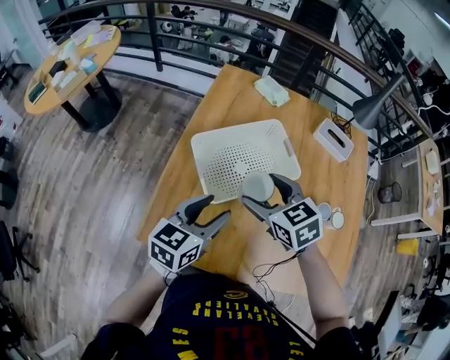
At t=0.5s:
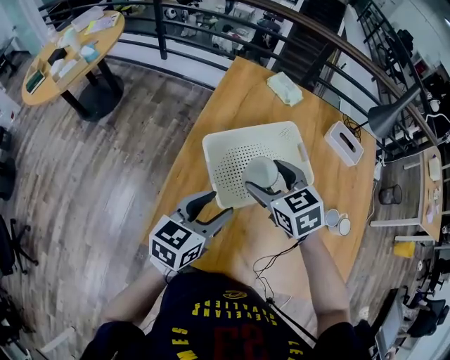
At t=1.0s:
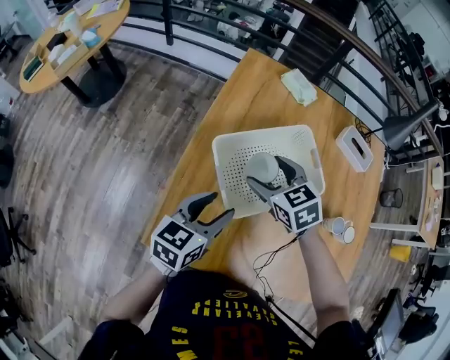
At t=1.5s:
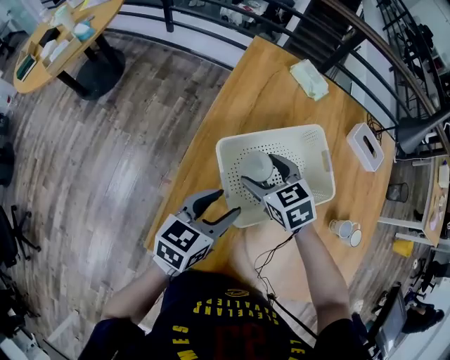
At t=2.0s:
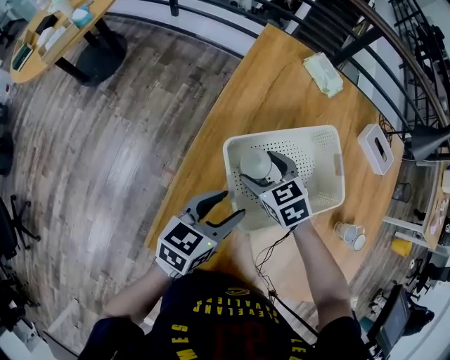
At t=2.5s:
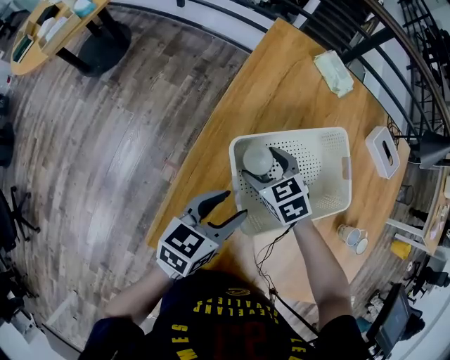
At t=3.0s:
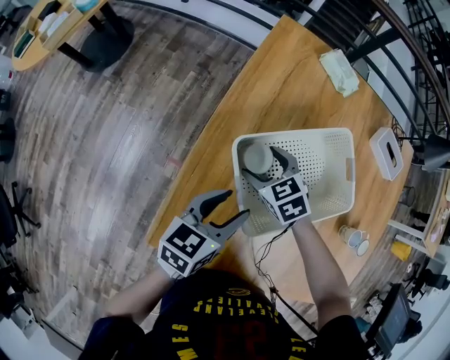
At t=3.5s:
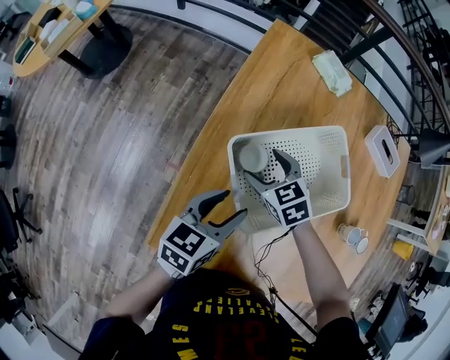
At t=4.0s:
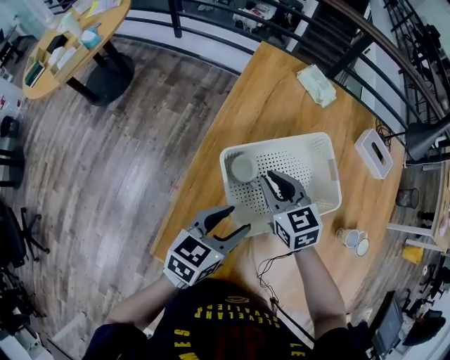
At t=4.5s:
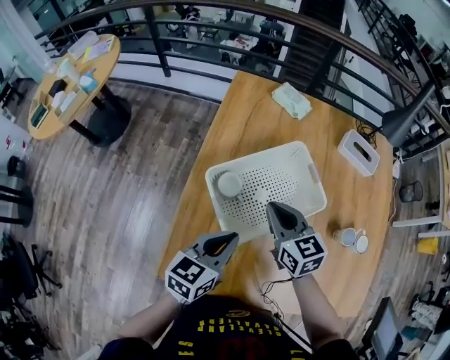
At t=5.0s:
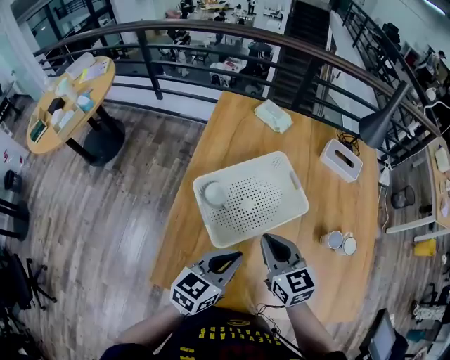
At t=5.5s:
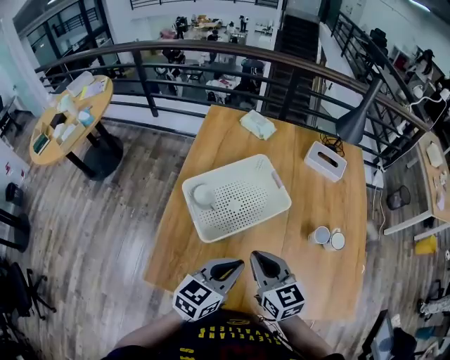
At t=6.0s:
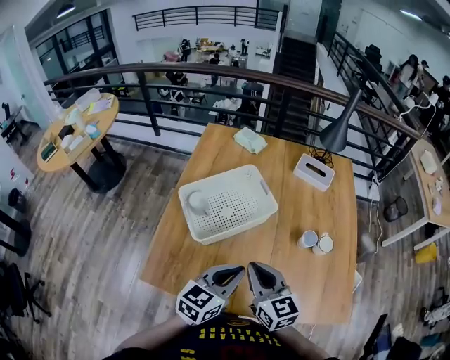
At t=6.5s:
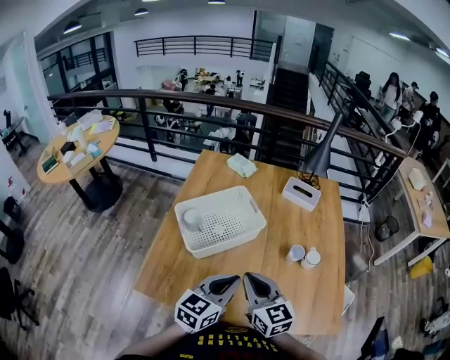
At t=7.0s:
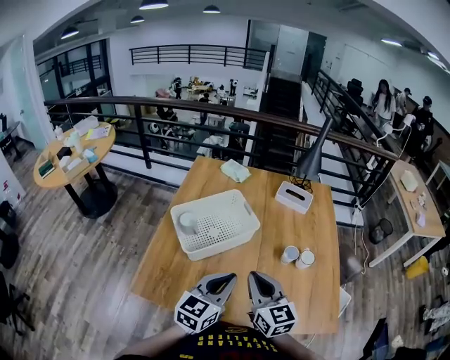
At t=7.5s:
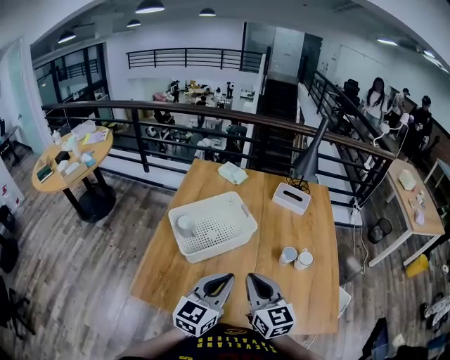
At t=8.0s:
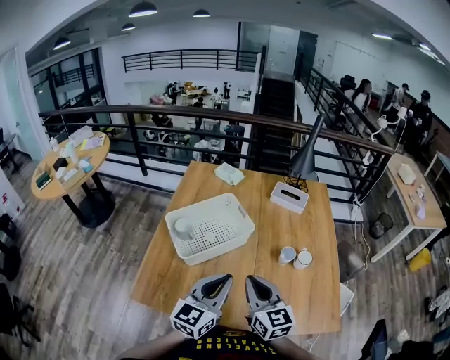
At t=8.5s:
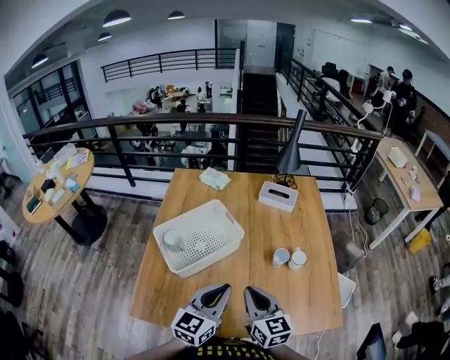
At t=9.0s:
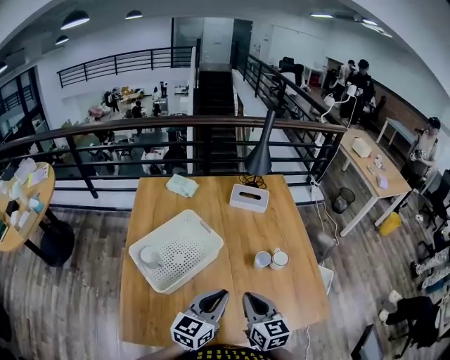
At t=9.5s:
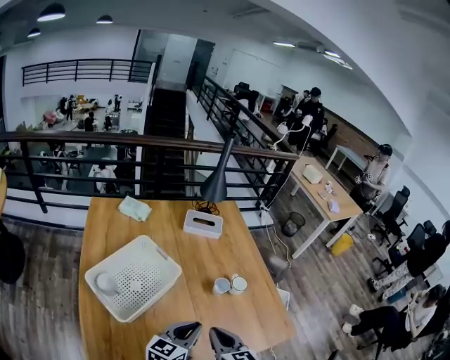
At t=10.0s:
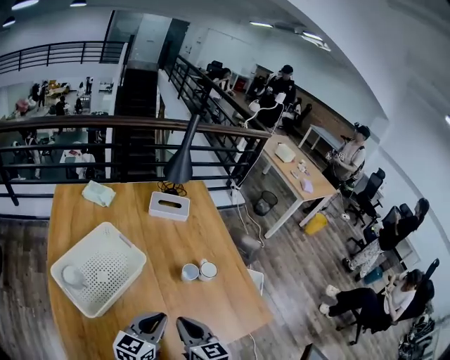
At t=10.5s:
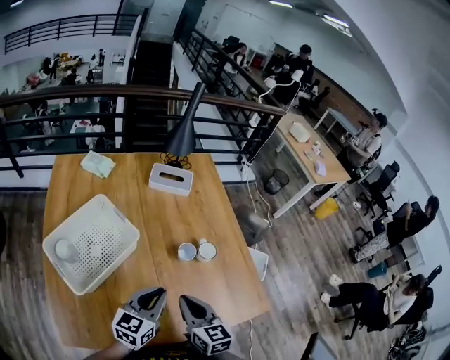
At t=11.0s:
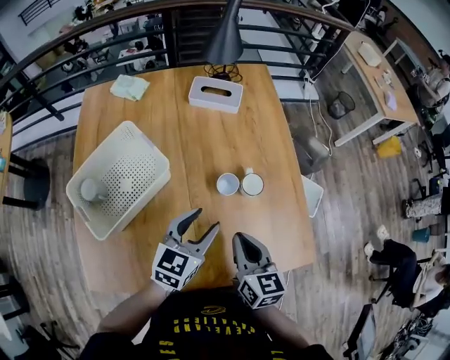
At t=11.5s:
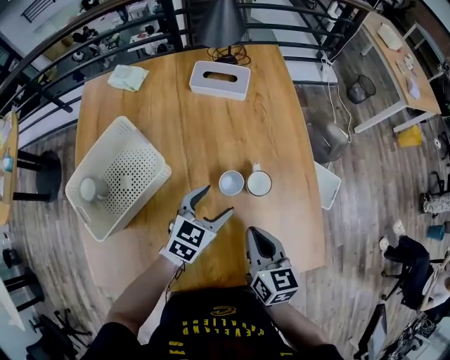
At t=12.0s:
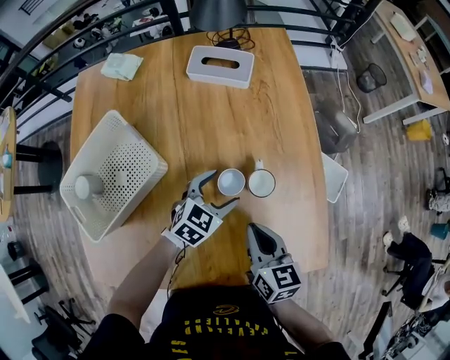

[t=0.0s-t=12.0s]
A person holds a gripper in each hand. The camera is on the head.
t=0.0s to t=2.0s: The left gripper is displaced forward, downward and to the left by some 15 cm. The right gripper travels downward, forward and to the left by about 25 cm.
t=2.0s to t=4.0s: The right gripper heads upward, covering about 5 cm, turns by some 20 degrees, and closes up.
t=4.0s to t=6.0s: The right gripper is displaced backward, to the right and upward by approximately 30 cm, and turns by roughly 30 degrees. Meanwhile the left gripper travels to the right, backward and upward by some 25 cm, and closes.
t=6.0s to t=8.0s: The left gripper moves upward, about 5 cm, while the right gripper goes roughly 5 cm to the right.
t=8.0s to t=10.0s: The two grippers go approximately 10 cm downward. The left gripper rotates roughly 30 degrees. Meanwhile the right gripper rotates roughly 30 degrees.
t=10.0s to t=12.0s: The right gripper moves to the right, forward and downward, roughly 20 cm. The left gripper heads forward, downward and to the right, covering roughly 30 cm, swivels some 30 degrees, and opens.

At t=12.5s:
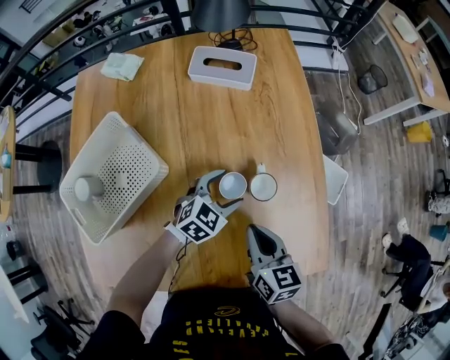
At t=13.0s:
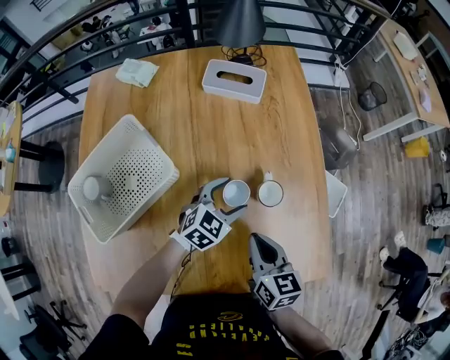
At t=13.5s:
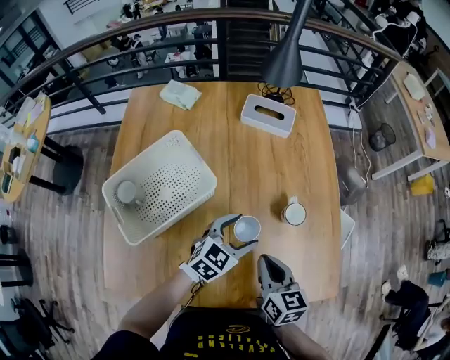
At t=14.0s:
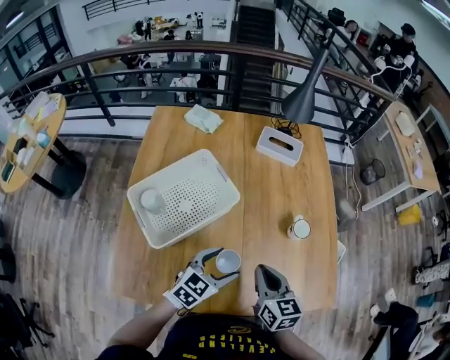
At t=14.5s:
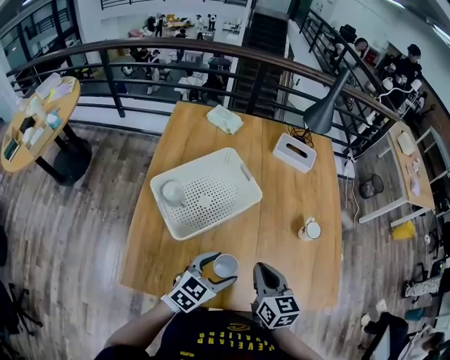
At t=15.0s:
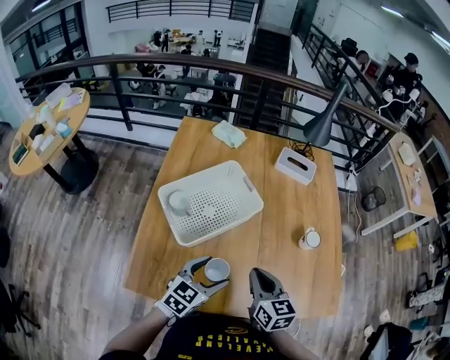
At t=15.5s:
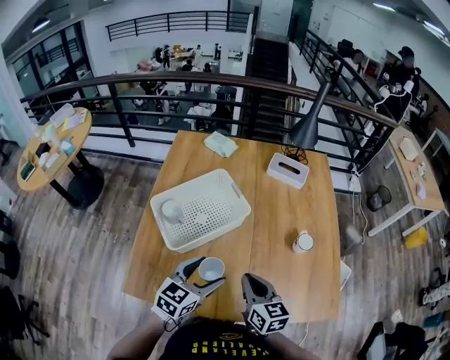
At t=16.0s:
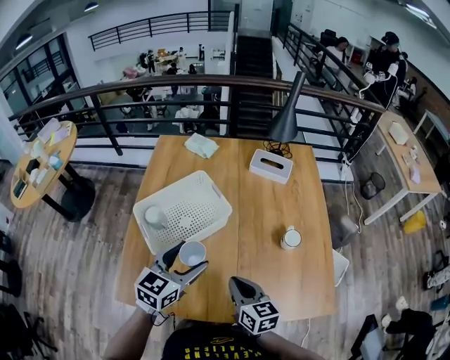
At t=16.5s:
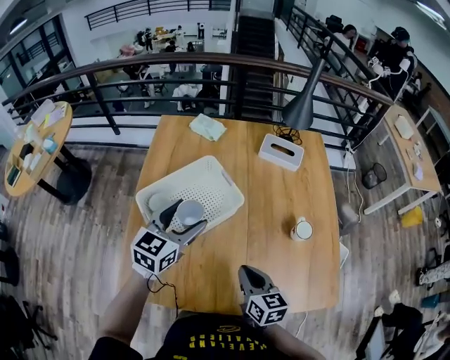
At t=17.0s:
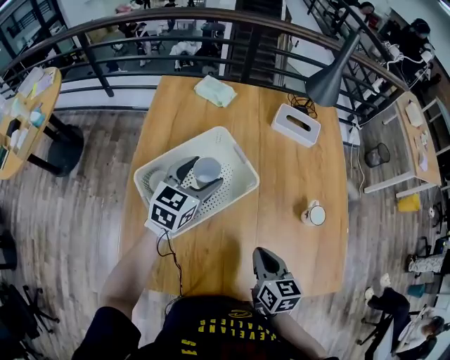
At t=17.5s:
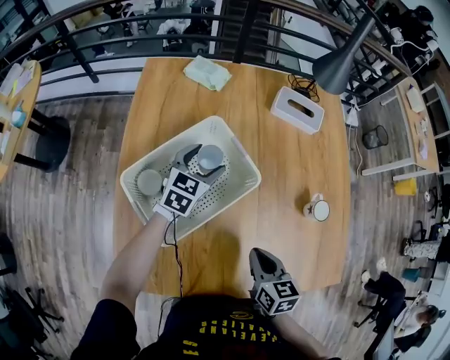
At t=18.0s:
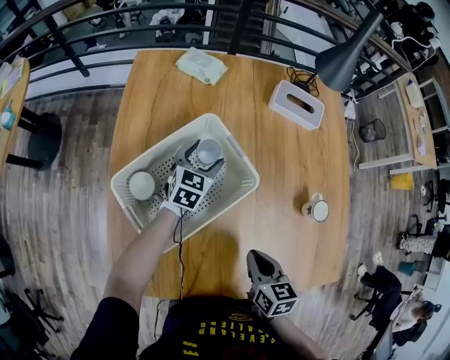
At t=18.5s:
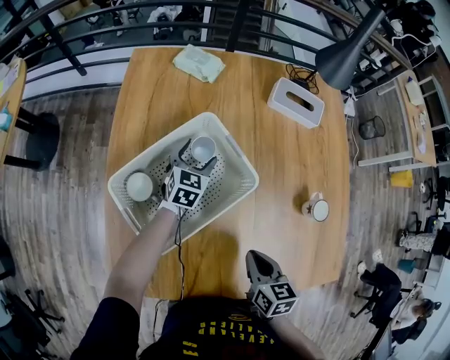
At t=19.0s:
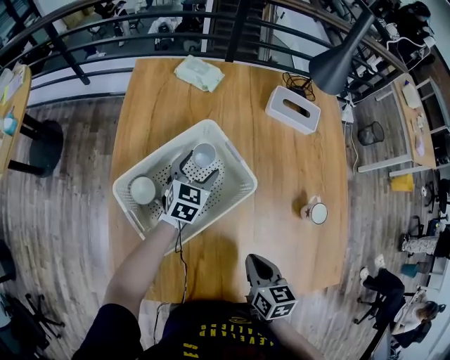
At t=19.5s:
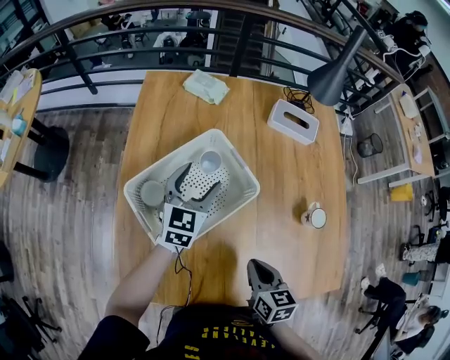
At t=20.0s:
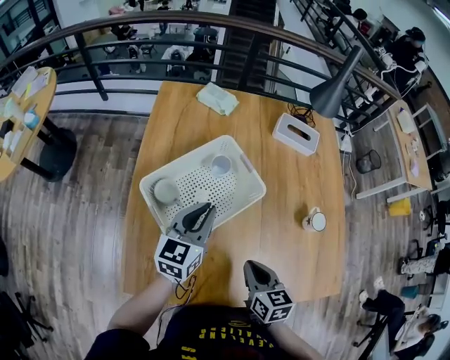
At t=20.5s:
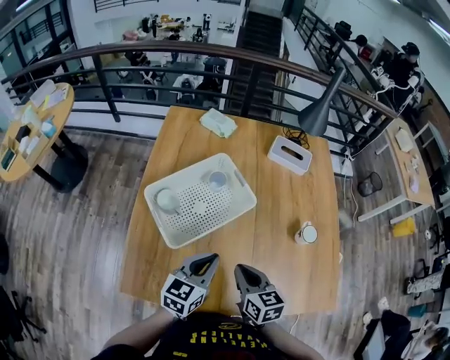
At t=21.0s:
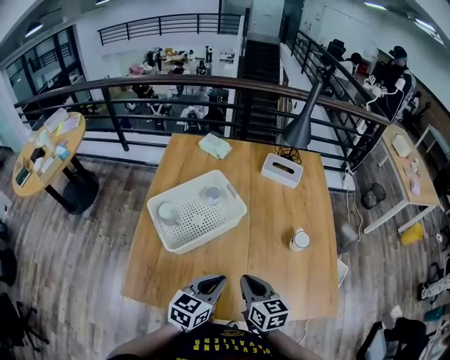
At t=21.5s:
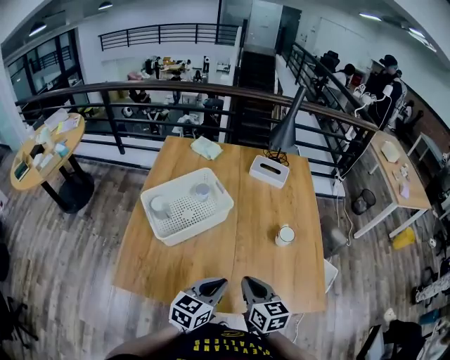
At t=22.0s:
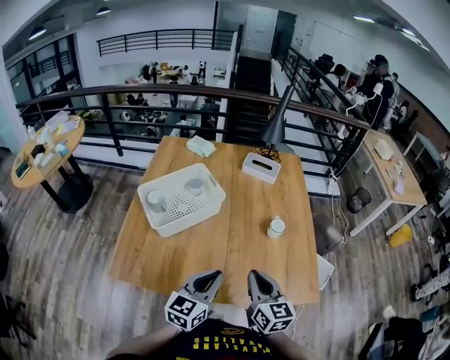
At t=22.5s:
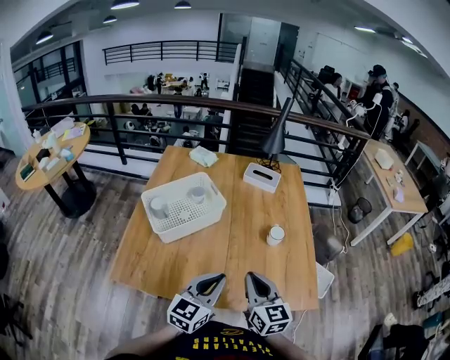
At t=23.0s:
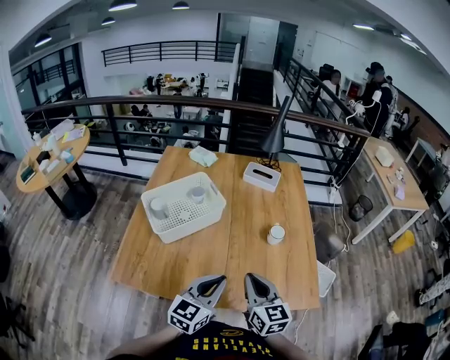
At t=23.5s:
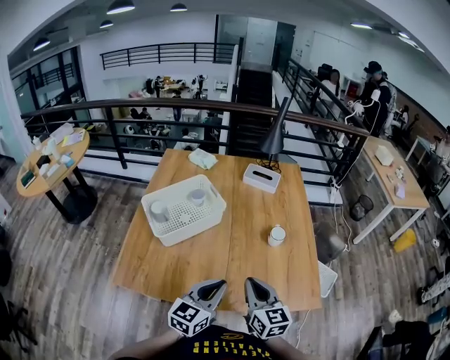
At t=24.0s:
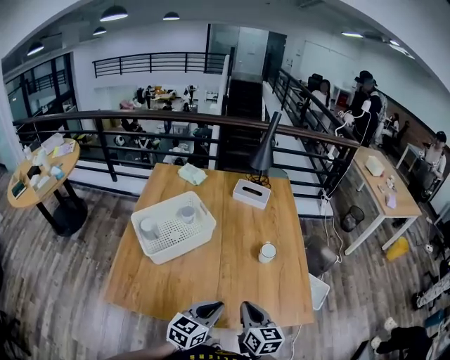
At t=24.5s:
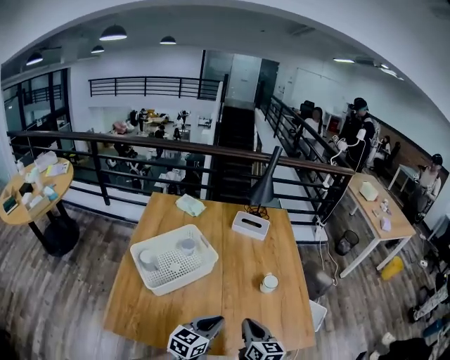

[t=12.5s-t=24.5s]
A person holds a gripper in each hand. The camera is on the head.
t=12.5s to t=14.5s: The right gripper travels to the left, backward and upward by approximately 25 cm. Meanwhile the left gripper heads backward, to the left and upward, covering roughly 35 cm, and changes its angle by approximately 30 degrees.
t=14.5s to t=16.5s: The left gripper is displaced forward, upward and to the left by some 20 cm, and rotates roughly 20 degrees.
t=16.5s to t=18.5s: The right gripper shifts roughly 5 cm downward; the left gripper is displaced downward and forward by about 30 cm.
t=18.5s to t=20.5s: The left gripper is displaced backward and upward by approximately 35 cm, turns by approximately 20 degrees, and closes its fingers; the right gripper moves upward, roughly 5 cm.
t=20.5s to t=22.5s: The two grippers go roughly 20 cm to the right, backward and upward. The right gripper swivels roughly 20 degrees.
t=22.5s to t=24.5s: The left gripper moves forward and downward, some 10 cm. Meanwhile the right gripper shifts roughly 5 cm downward.

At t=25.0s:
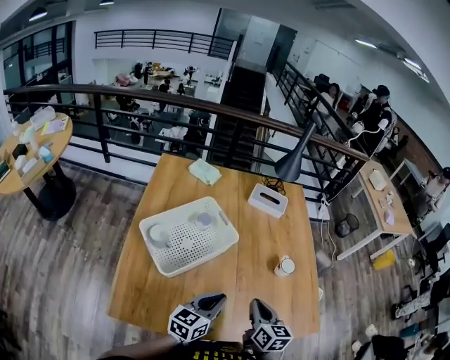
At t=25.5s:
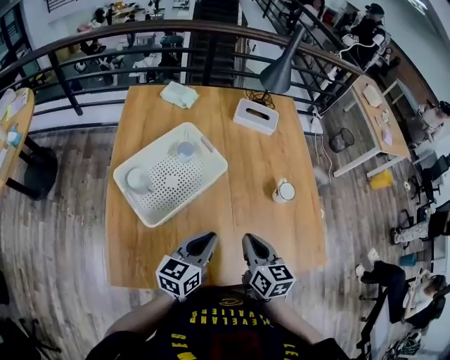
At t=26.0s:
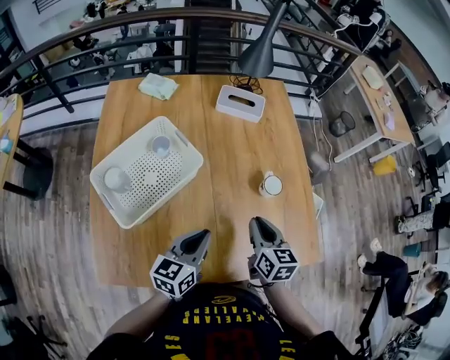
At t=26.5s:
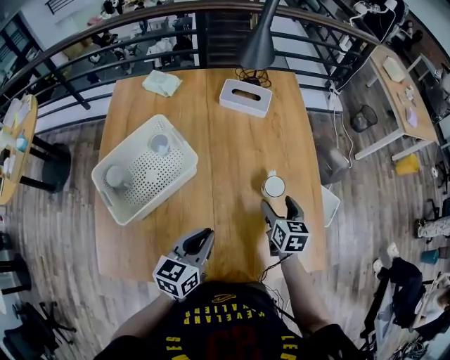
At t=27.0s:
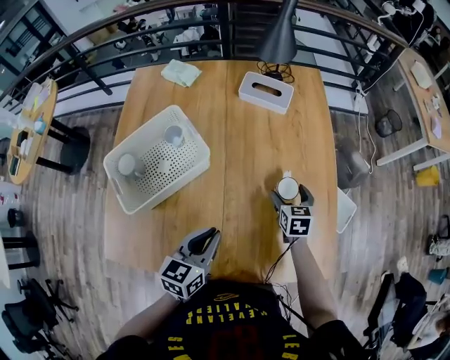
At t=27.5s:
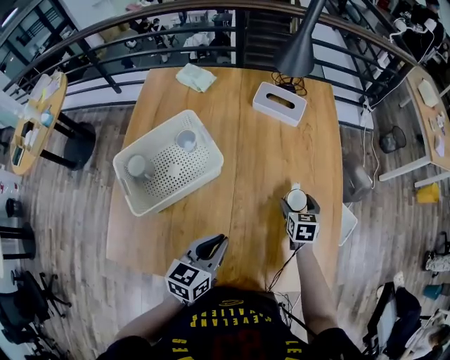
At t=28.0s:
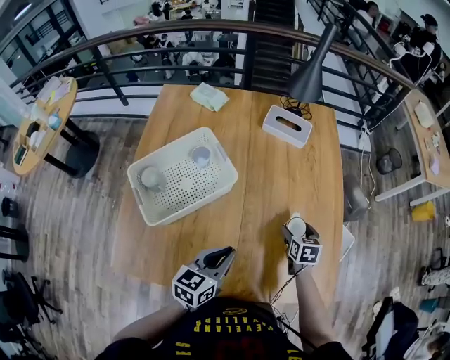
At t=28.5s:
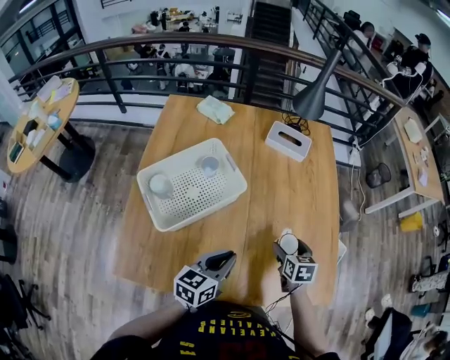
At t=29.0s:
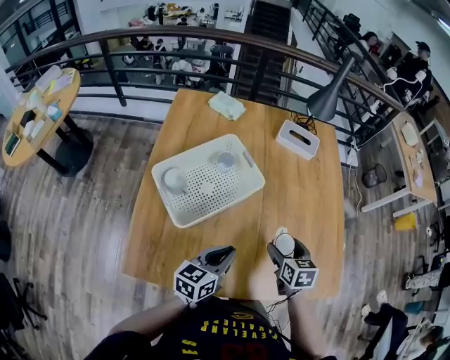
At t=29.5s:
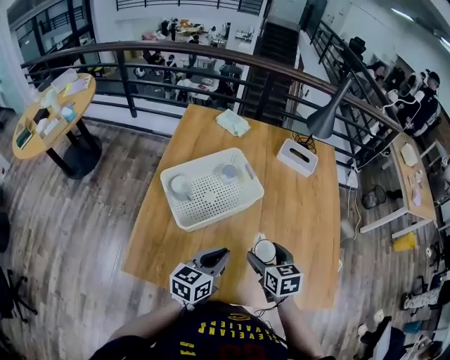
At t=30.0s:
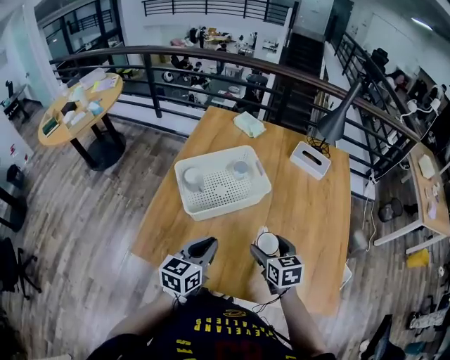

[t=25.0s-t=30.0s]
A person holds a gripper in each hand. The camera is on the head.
t=25.0s to t=27.5s: The left gripper shifts roughly 10 cm to the right and forward. The right gripper is displaced forward, downward and to the right by some 30 cm, swivels about 30 degrees, and opens its fingers.
t=27.5s to t=30.0s: The right gripper goes approximately 30 cm to the left, backward and upward, and rotates about 30 degrees. Meanwhile the left gripper moves to the left and backward, some 15 cm.
